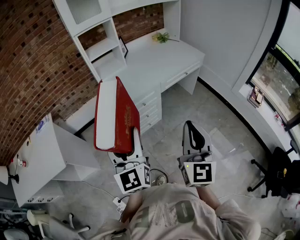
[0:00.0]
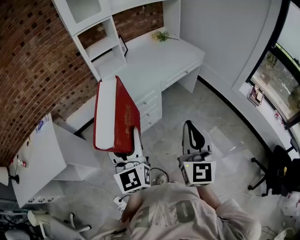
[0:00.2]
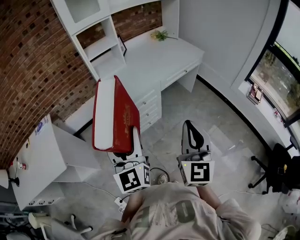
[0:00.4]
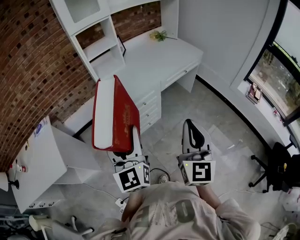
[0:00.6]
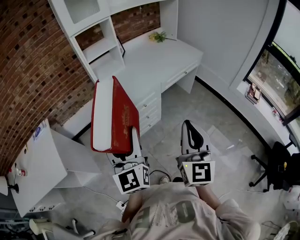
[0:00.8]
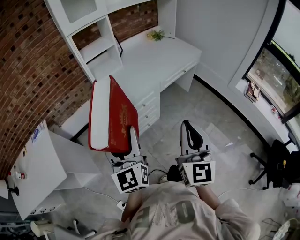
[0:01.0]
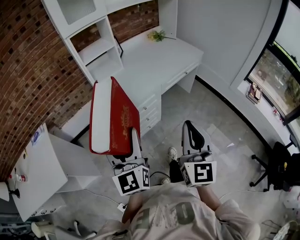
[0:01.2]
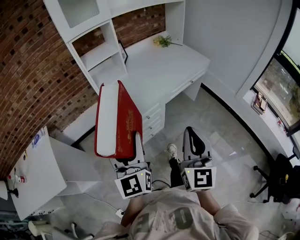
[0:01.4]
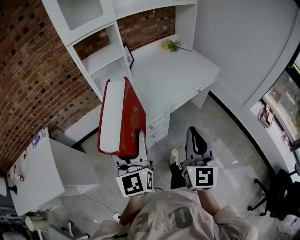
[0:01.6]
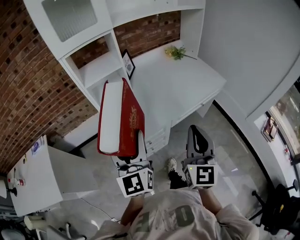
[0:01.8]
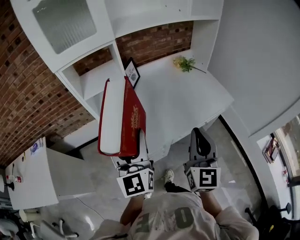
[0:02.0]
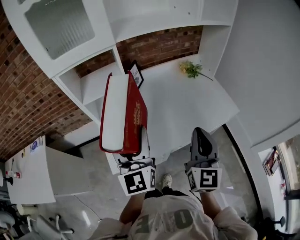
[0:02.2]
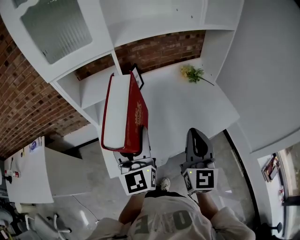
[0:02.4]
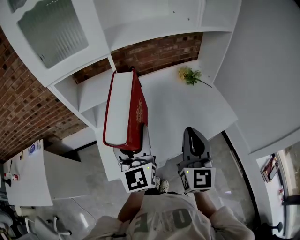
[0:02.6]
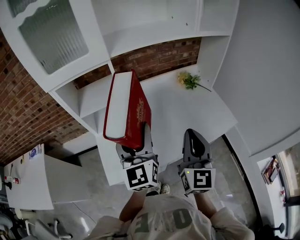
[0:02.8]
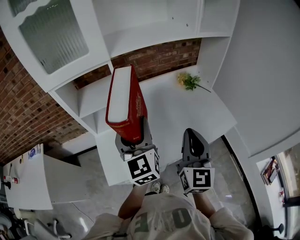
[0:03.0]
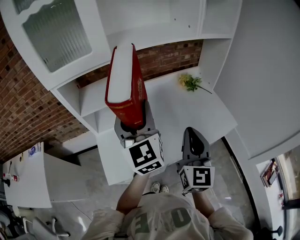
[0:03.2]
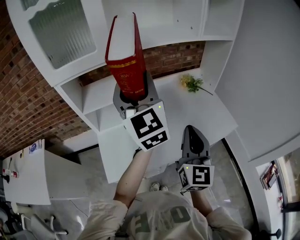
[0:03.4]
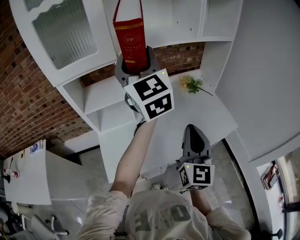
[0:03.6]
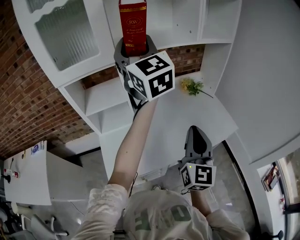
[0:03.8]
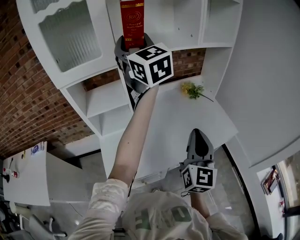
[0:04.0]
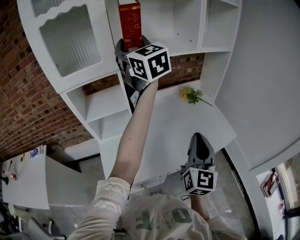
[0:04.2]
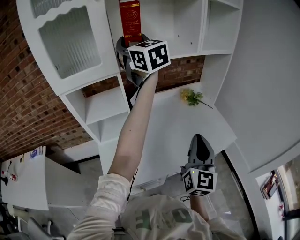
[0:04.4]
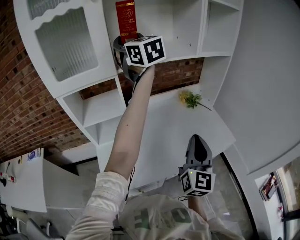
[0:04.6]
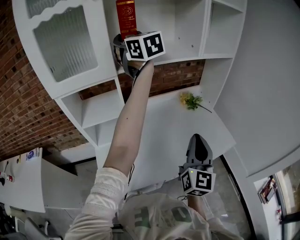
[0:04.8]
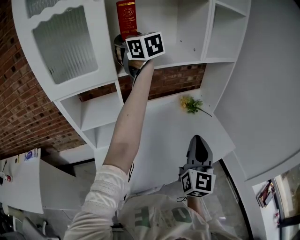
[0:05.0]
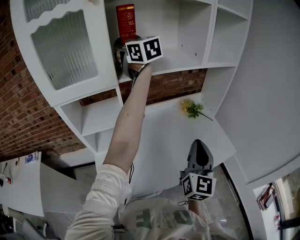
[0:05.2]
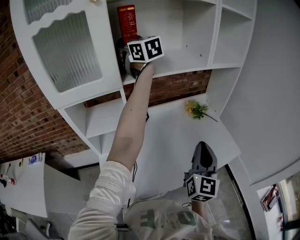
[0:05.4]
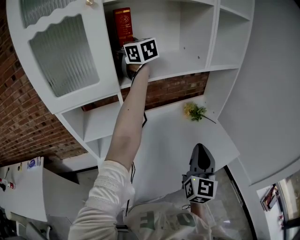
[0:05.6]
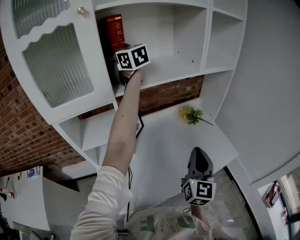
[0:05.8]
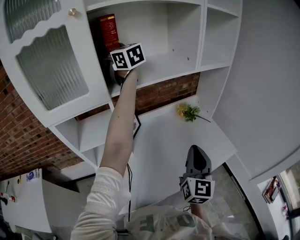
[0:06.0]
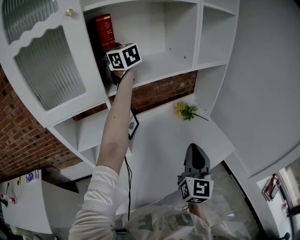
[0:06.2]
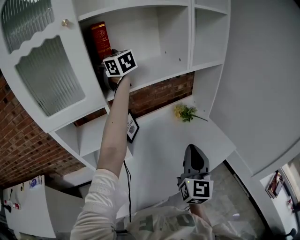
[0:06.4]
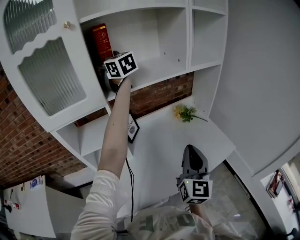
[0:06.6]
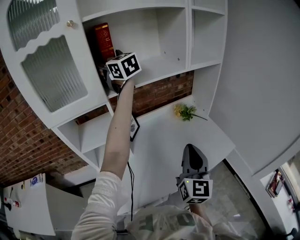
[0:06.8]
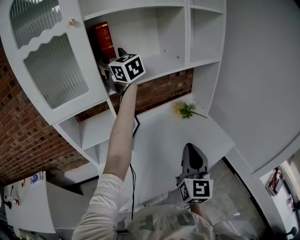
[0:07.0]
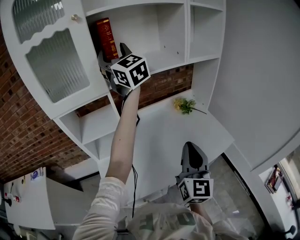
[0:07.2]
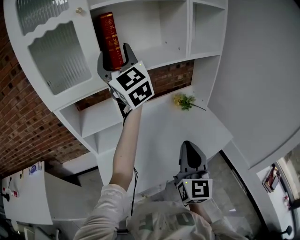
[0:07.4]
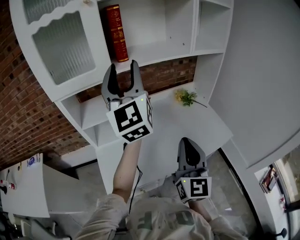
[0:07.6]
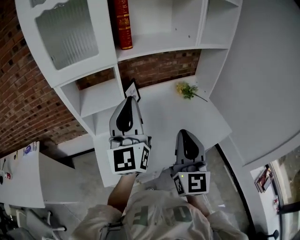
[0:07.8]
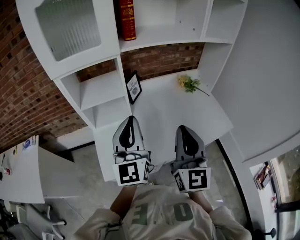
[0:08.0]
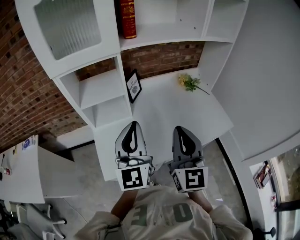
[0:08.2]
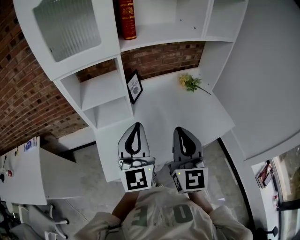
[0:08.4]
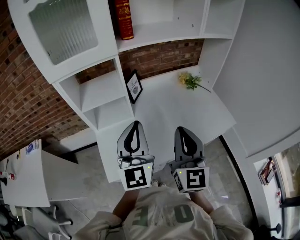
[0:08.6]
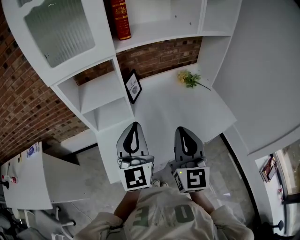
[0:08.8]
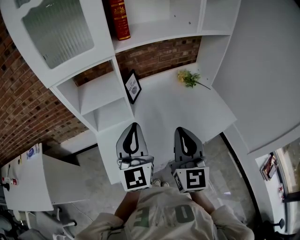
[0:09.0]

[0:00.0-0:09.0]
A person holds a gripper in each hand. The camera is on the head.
0:00.0 to 0:01.6: Both grippers travel together forward, some 20 cm.
0:01.6 to 0:03.0: Both grippers move forward, some 35 cm.
0:03.0 to 0:04.4: The left gripper goes about 30 cm upward and forward.
0:04.4 to 0:06.0: The right gripper heads forward, covering about 10 cm. Meanwhile the left gripper is displaced forward by some 15 cm.
0:06.0 to 0:07.6: The right gripper heads backward and to the left, covering some 10 cm. The left gripper shifts some 30 cm backward, and swivels approximately 30 degrees.
0:07.6 to 0:09.0: The left gripper shifts about 25 cm downward and backward, and closes, while the right gripper shifts by roughly 5 cm.

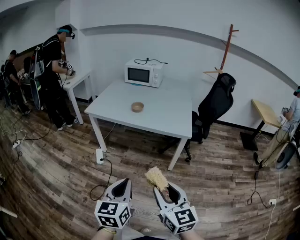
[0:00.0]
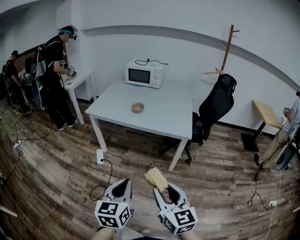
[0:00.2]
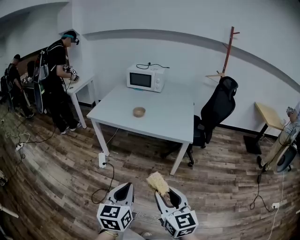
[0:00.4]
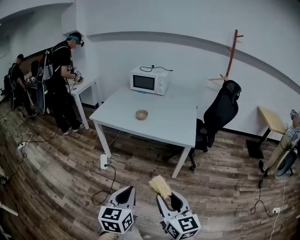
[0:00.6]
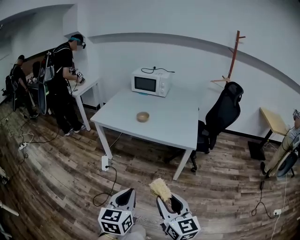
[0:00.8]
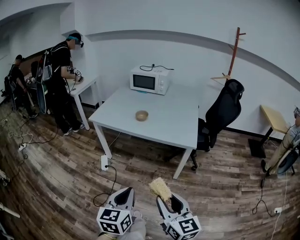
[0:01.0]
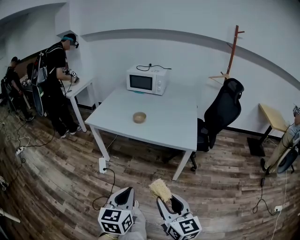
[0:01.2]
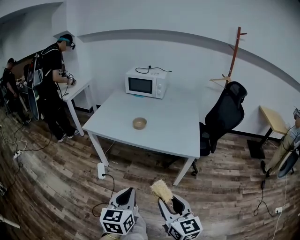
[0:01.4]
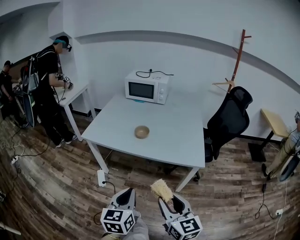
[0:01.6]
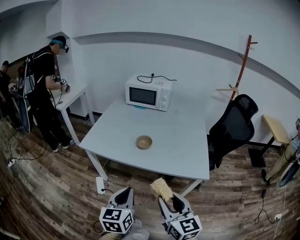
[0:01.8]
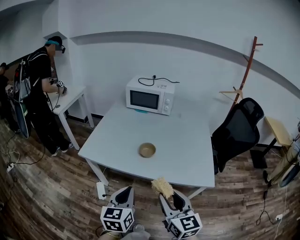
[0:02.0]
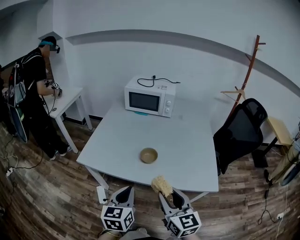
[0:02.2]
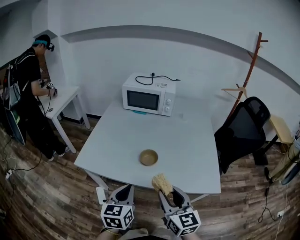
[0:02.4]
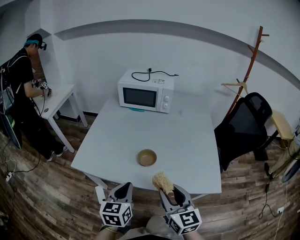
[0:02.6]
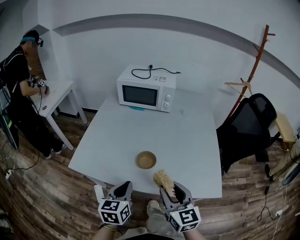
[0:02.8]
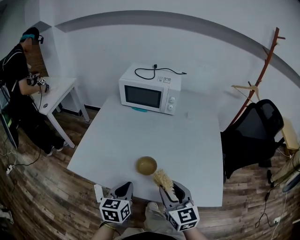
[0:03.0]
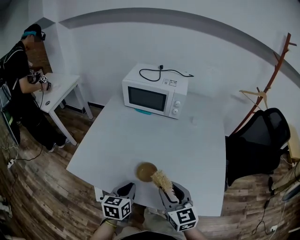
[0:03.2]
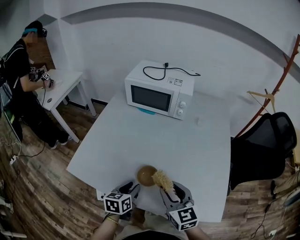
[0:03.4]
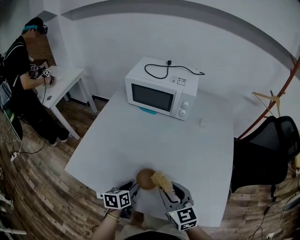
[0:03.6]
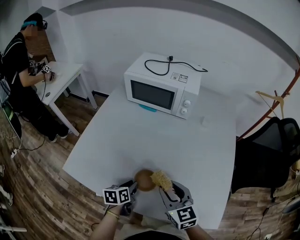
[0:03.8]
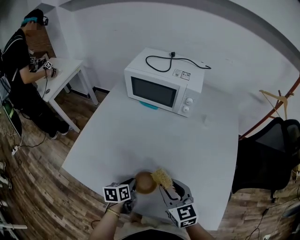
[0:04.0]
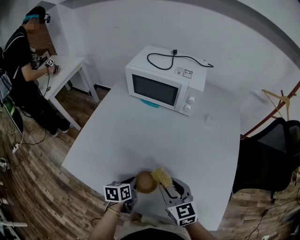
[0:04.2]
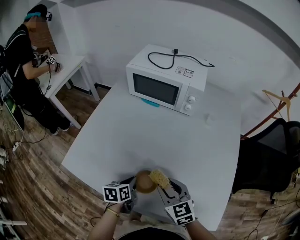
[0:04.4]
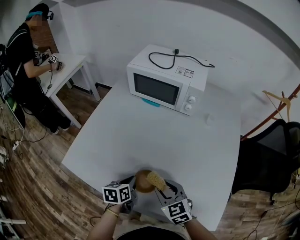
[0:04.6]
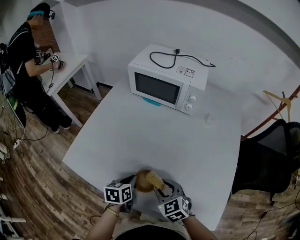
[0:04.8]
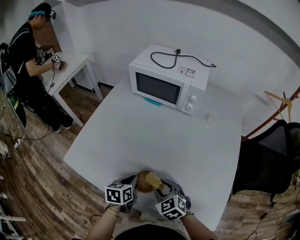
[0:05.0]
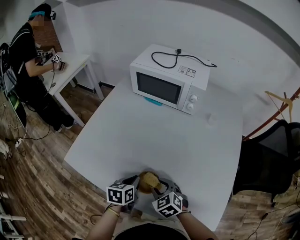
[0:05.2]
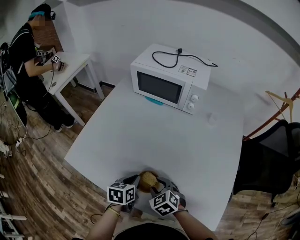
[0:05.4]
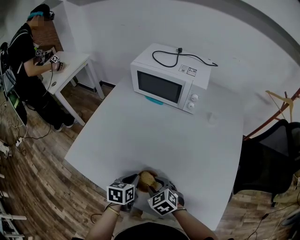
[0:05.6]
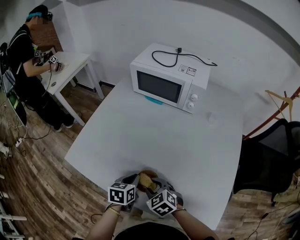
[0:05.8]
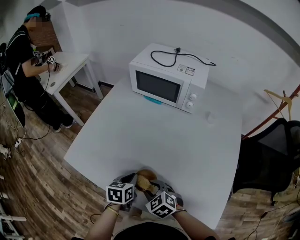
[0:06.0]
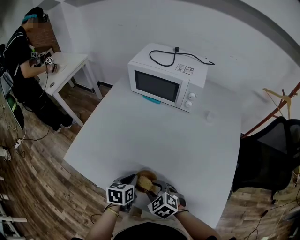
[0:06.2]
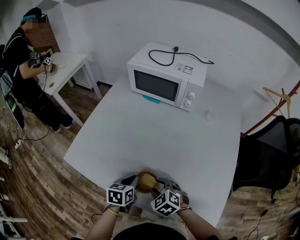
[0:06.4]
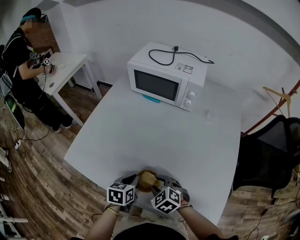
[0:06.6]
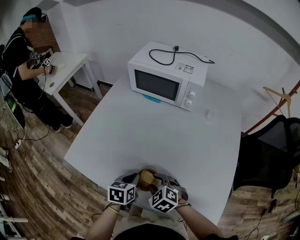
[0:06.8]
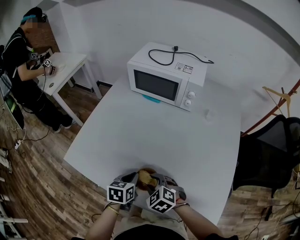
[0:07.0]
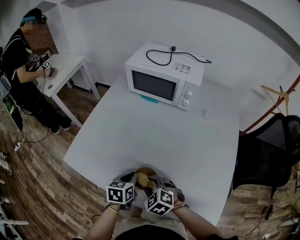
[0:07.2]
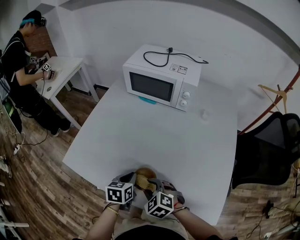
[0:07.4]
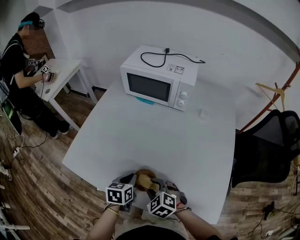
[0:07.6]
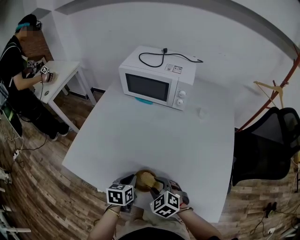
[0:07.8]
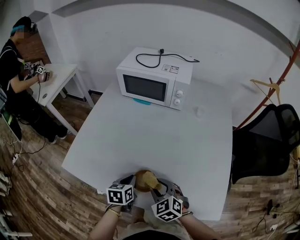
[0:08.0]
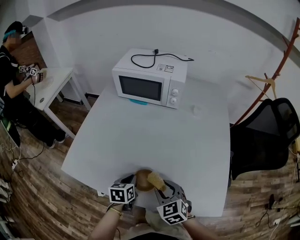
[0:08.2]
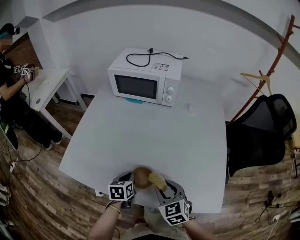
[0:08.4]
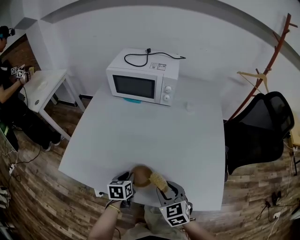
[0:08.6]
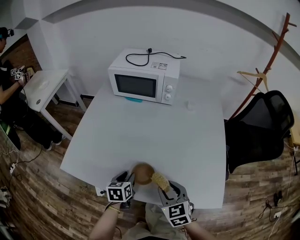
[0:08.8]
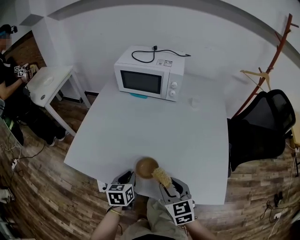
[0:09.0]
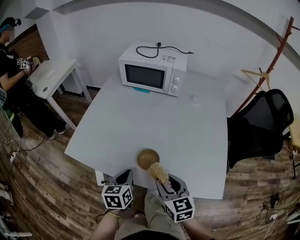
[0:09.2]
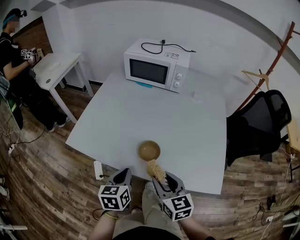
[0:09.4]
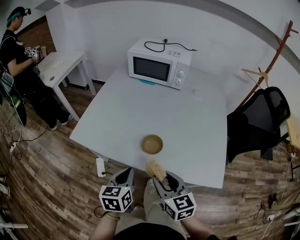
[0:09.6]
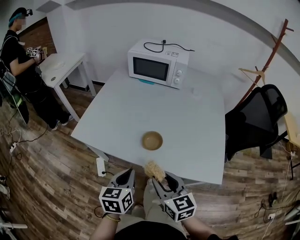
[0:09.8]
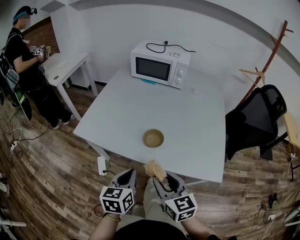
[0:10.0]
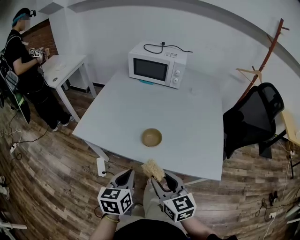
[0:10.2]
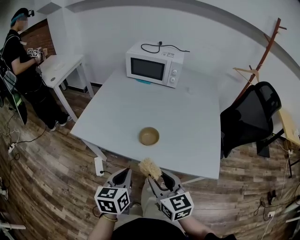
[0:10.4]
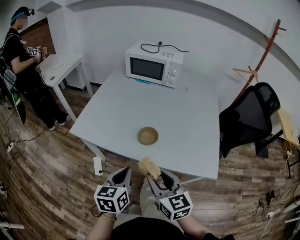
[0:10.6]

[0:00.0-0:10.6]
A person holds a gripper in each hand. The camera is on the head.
0:00.0 to 0:01.6: The grippers both shift forward by about 20 cm.
0:01.6 to 0:03.0: The grippers both shift forward by about 35 cm.
0:03.0 to 0:04.6: The right gripper travels forward and downward by about 15 cm, and turns by about 30 degrees, while the left gripper is displaced downward and forward by some 15 cm, turns by approximately 30 degrees, and opens, then closes once more.
0:04.6 to 0:06.0: The right gripper is displaced to the left by about 5 cm, and rotates some 20 degrees.
0:06.0 to 0:07.6: The grippers move only a little.
0:07.6 to 0:09.0: The right gripper goes some 10 cm upward, backward and to the right, and turns by approximately 40 degrees, while the left gripper moves backward, approximately 5 cm.
0:09.0 to 0:10.6: The left gripper travels backward and upward by approximately 20 cm, while the right gripper goes approximately 15 cm backward, to the left and upward.

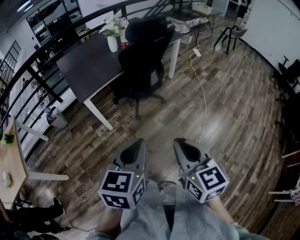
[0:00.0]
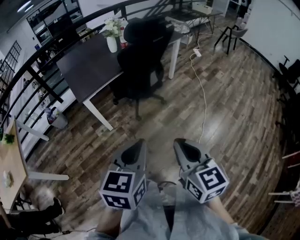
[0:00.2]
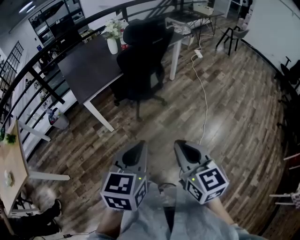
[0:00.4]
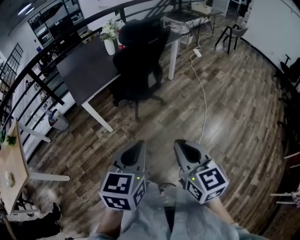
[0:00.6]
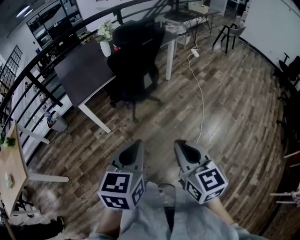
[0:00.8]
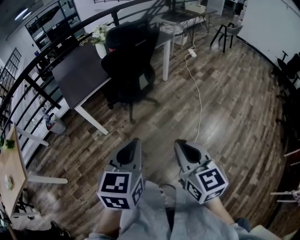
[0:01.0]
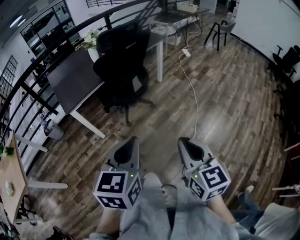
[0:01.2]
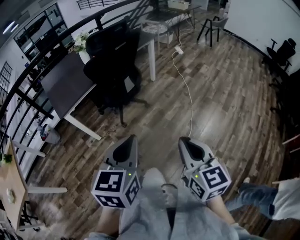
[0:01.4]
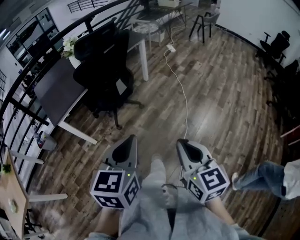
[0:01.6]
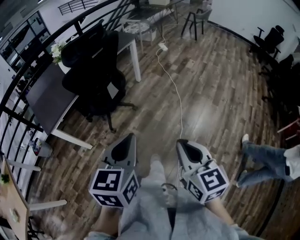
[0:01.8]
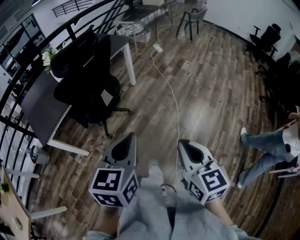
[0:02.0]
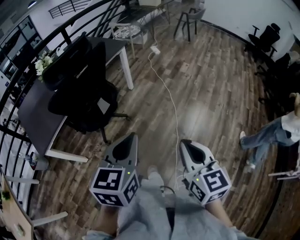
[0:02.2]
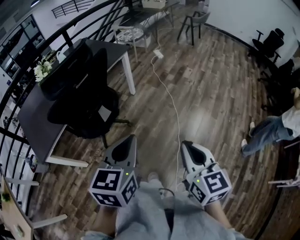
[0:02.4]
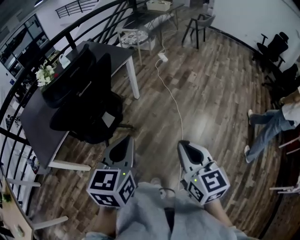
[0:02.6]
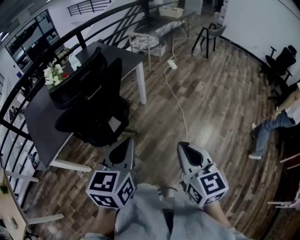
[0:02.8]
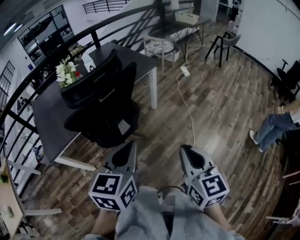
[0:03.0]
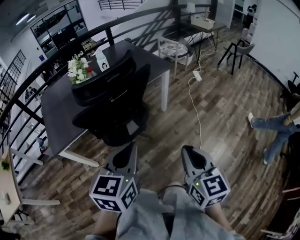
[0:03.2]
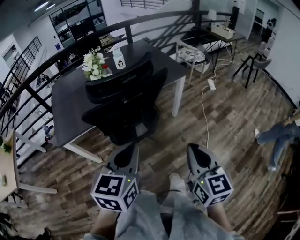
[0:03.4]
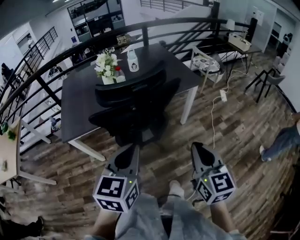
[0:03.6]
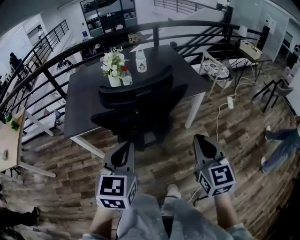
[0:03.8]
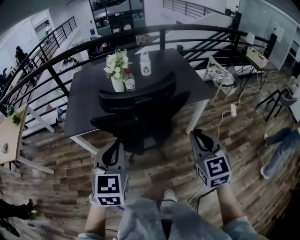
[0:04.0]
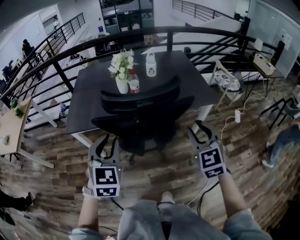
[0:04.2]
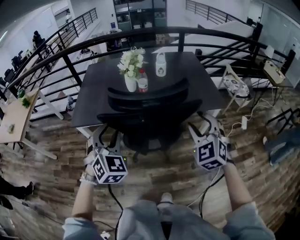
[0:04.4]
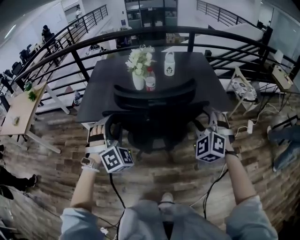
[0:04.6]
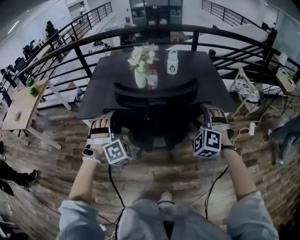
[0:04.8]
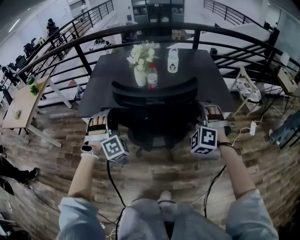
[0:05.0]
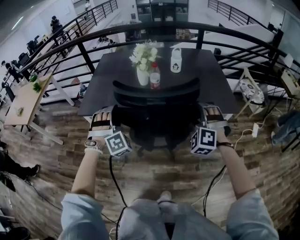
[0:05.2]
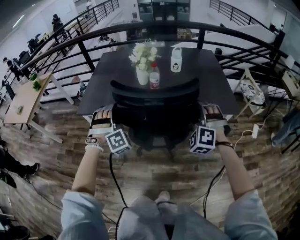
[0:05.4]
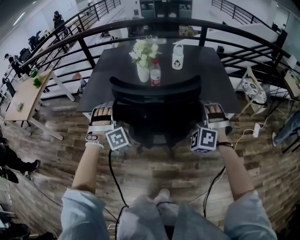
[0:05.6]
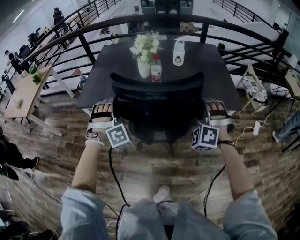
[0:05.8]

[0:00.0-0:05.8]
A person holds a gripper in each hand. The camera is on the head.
0:00.0 to 0:01.4: The two grippers go about 15 cm to the right.
0:01.4 to 0:02.8: The grippers both shift forward by some 30 cm.
0:02.8 to 0:04.4: The right gripper changes place by some 40 cm, rotates around the line of its fingers by roughly 60 degrees, counterclockwise from behind, and opens up, while the left gripper shifts by roughly 25 cm, rotates some 70 degrees, and opens its fingers.
0:04.4 to 0:05.8: The grippers both shift forward and downward by approximately 10 cm. The right gripper rotates approximately 40 degrees. Meanwhile the left gripper twists some 40 degrees clockwise, seen from behind.
